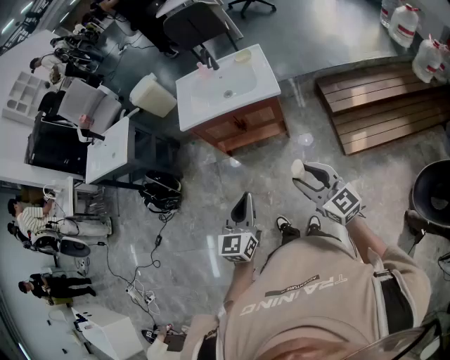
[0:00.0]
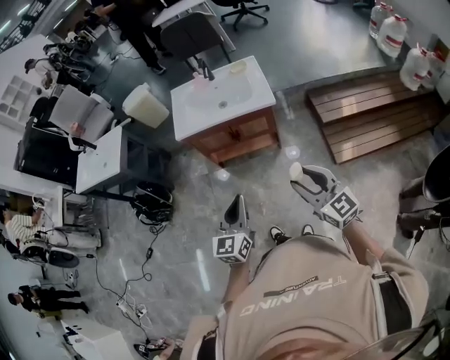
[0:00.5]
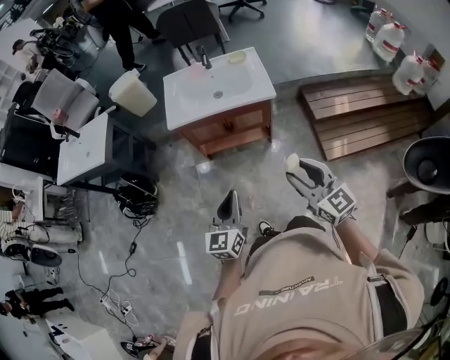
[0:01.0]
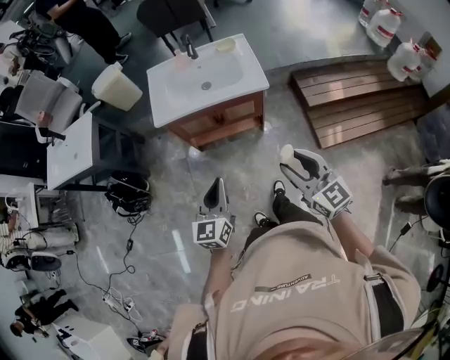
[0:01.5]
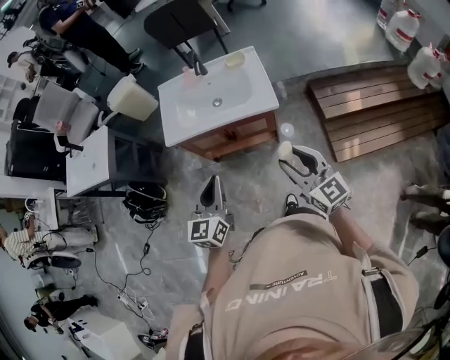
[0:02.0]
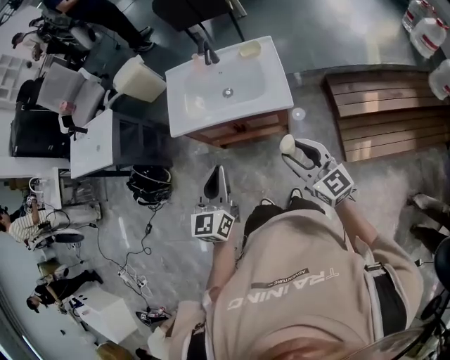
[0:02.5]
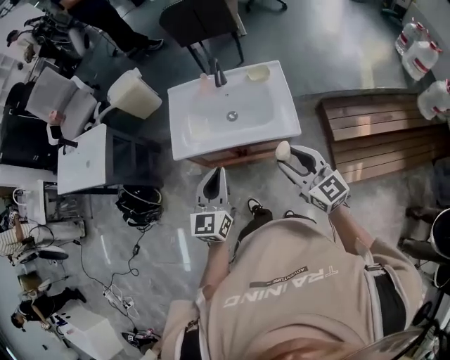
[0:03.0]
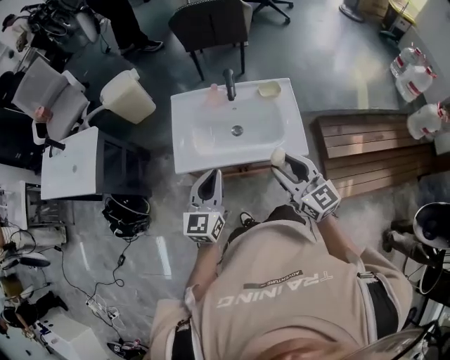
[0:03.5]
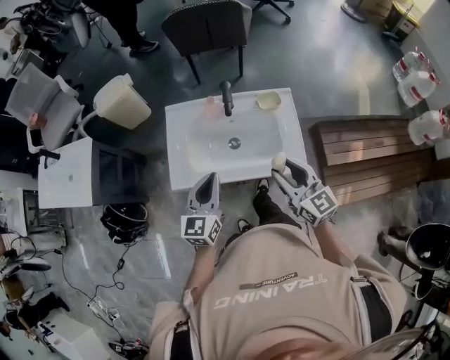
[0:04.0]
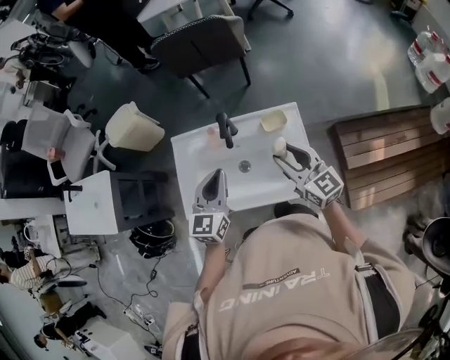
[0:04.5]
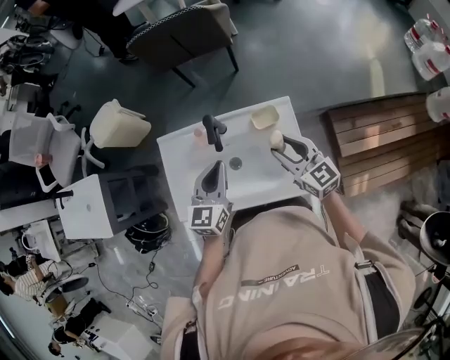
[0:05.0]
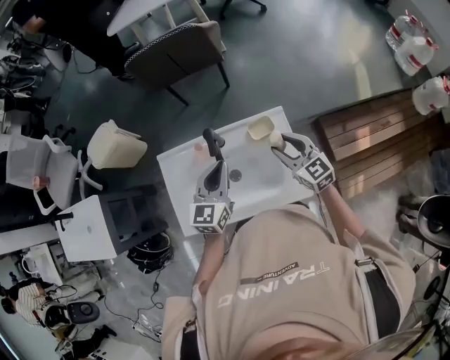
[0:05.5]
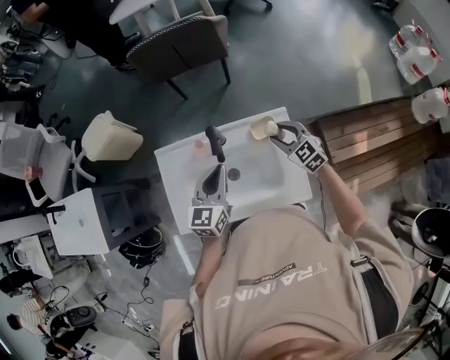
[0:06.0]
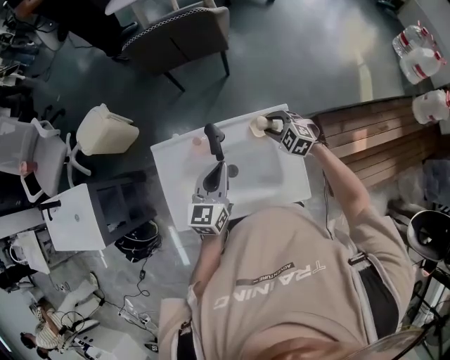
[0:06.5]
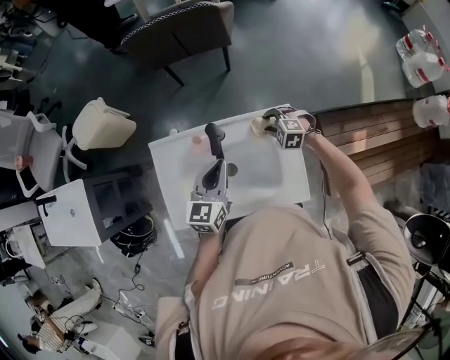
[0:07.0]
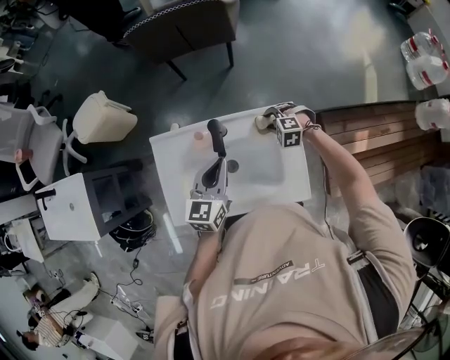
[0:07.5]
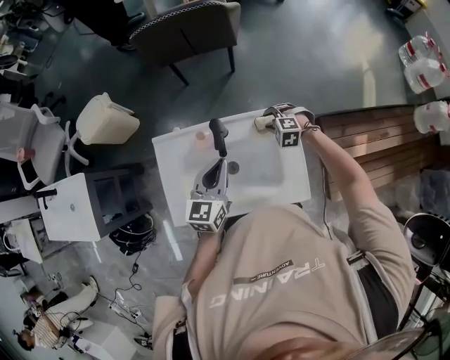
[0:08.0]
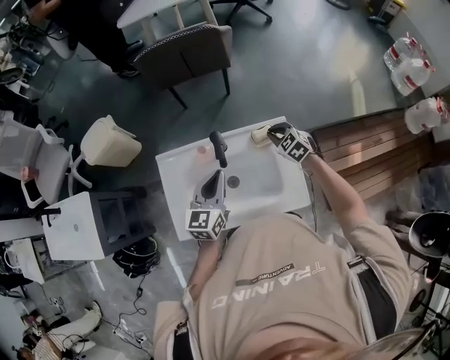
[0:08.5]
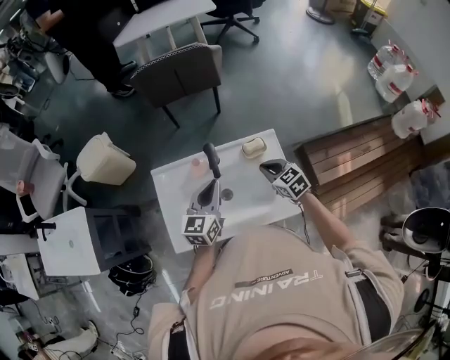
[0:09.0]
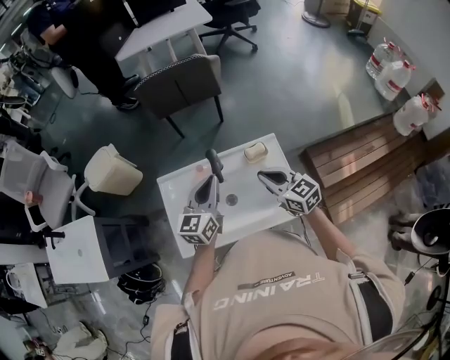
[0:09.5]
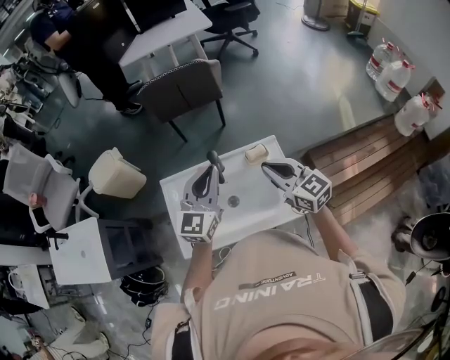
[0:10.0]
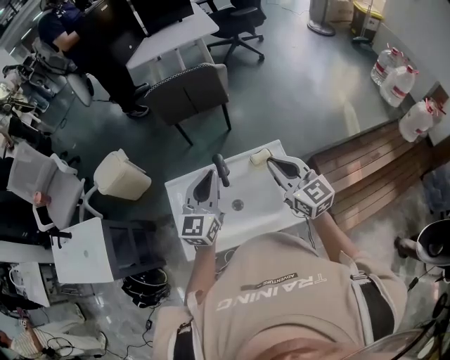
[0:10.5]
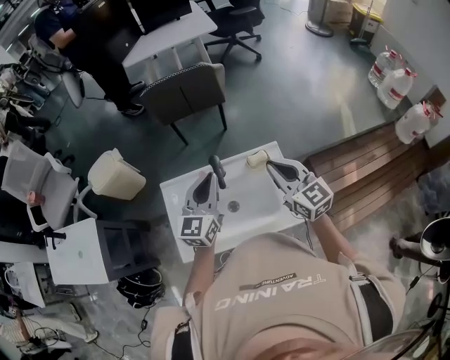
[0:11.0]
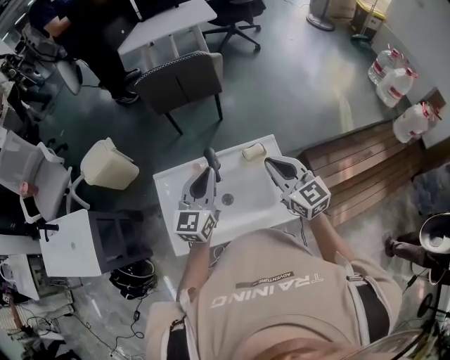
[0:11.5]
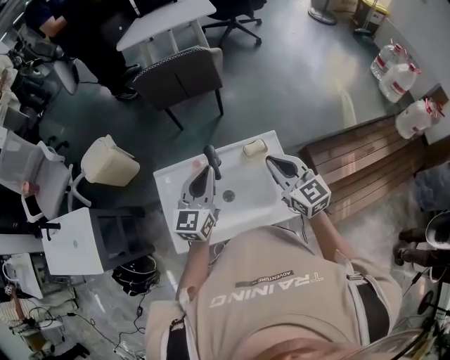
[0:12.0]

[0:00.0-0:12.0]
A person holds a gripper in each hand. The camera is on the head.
0:00.0 to 0:02.0: The two grippers go about 20 cm forward.
0:02.0 to 0:04.0: The grippers both shift forward by some 30 cm.
0:04.0 to 0:06.0: The right gripper heads forward and downward, covering about 30 cm, and rotates about 30 degrees, while the left gripper is displaced forward and to the right by some 25 cm.
0:06.0 to 0:08.0: The right gripper goes some 15 cm downward and forward, and points its fingers approximately 30 degrees further downward.
0:08.0 to 0:10.0: The left gripper travels upward by some 15 cm, and rotates roughly 20 degrees. Meanwhile the right gripper moves upward and backward, about 35 cm, angles its fingers upward, by roughly 50 degrees, and closes its fingers.
0:10.0 to 0:12.0: The left gripper changes place by some 5 cm.

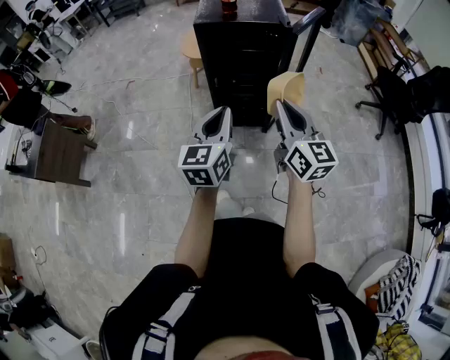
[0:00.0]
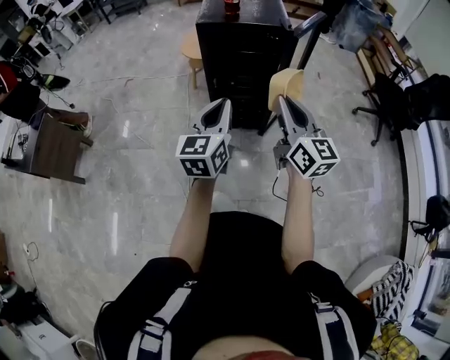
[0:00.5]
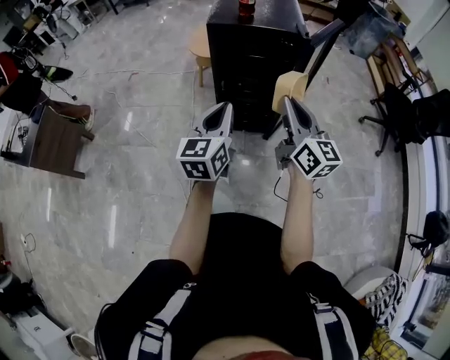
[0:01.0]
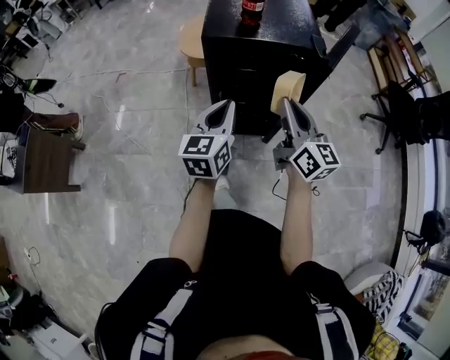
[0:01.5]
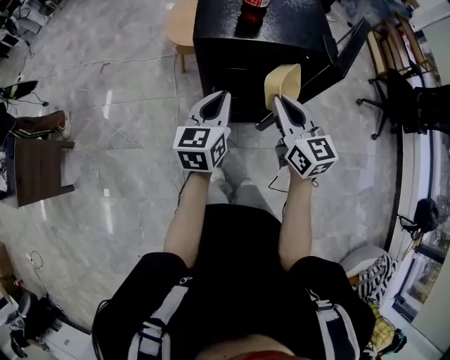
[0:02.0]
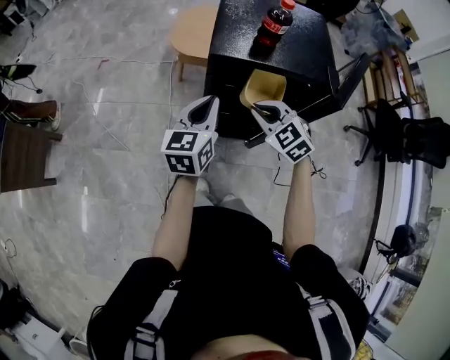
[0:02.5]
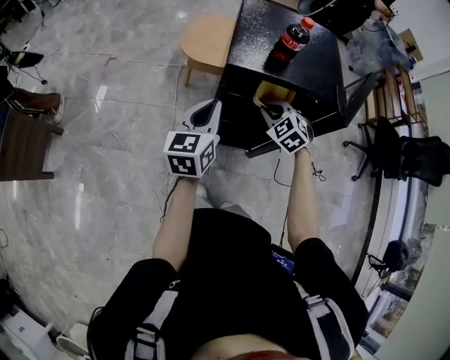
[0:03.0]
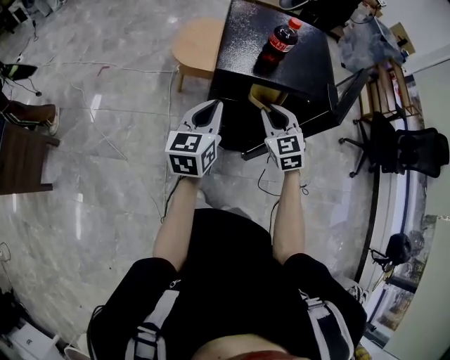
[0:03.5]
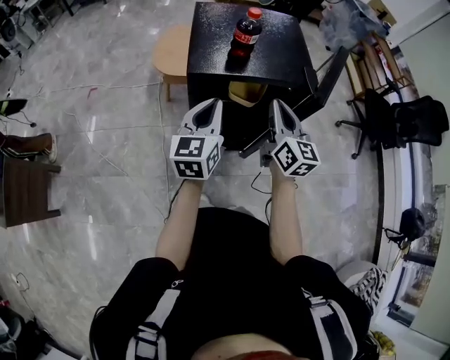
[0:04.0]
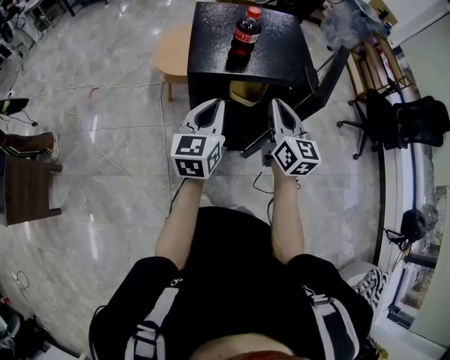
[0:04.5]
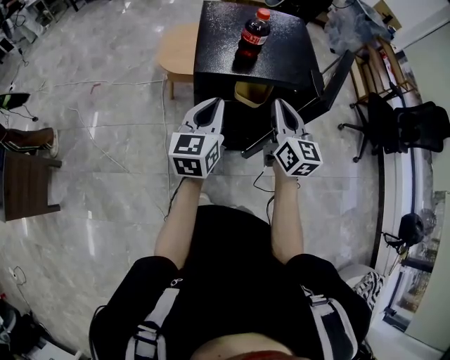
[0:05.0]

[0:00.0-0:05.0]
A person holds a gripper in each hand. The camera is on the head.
0:00.0 to 0:02.5: The left gripper is displaced forward by roughly 35 cm, while the right gripper goes roughly 40 cm forward and downward, and points its fingers some 40 degrees further downward.
0:02.5 to 0:05.0: The right gripper heads upward and to the right, covering some 15 cm, and points its fingers approximately 30 degrees further upward. Meanwhile the left gripper moves some 5 cm.

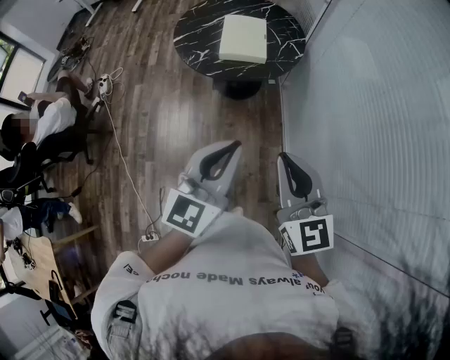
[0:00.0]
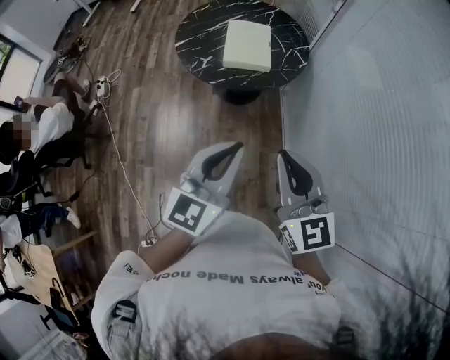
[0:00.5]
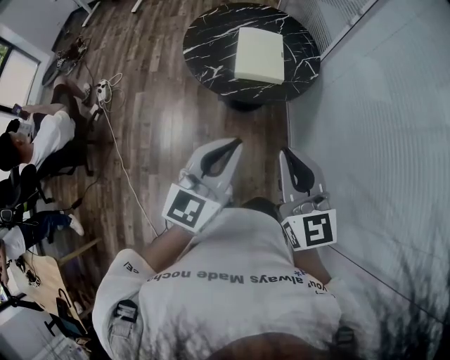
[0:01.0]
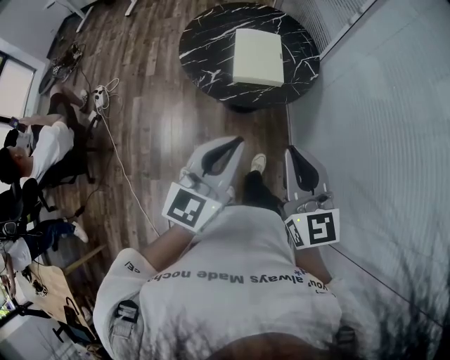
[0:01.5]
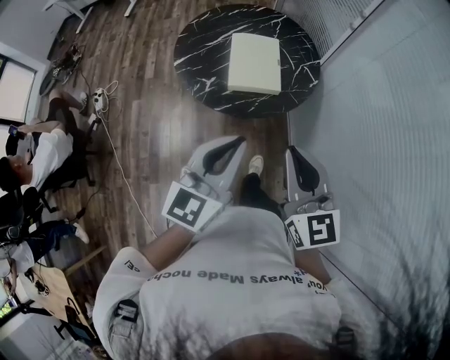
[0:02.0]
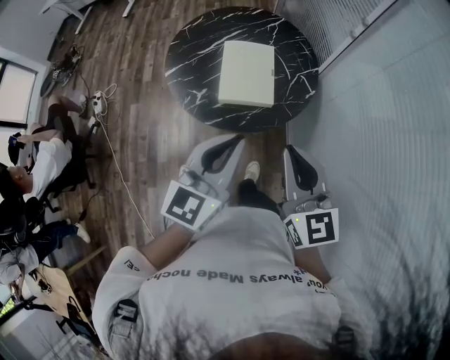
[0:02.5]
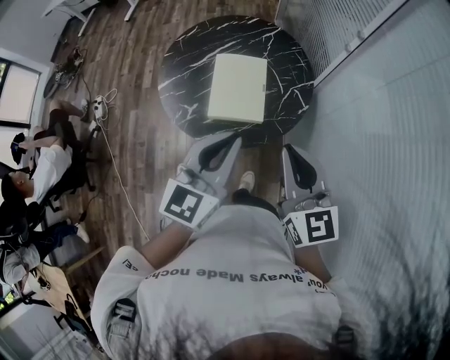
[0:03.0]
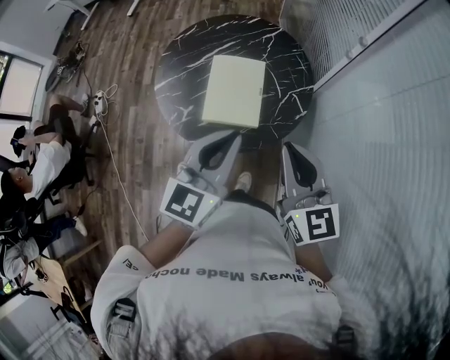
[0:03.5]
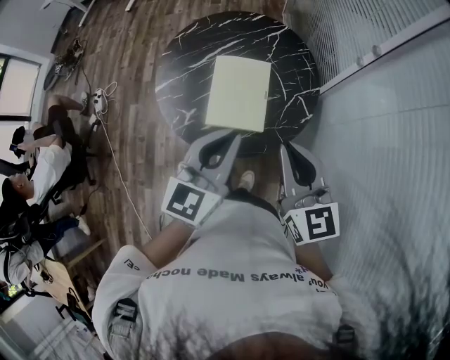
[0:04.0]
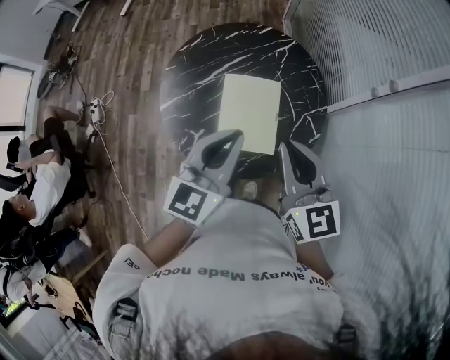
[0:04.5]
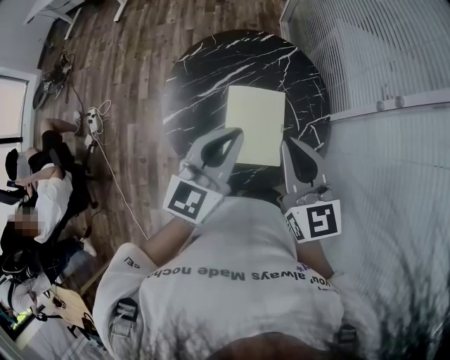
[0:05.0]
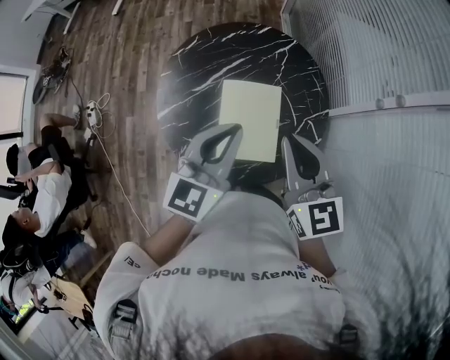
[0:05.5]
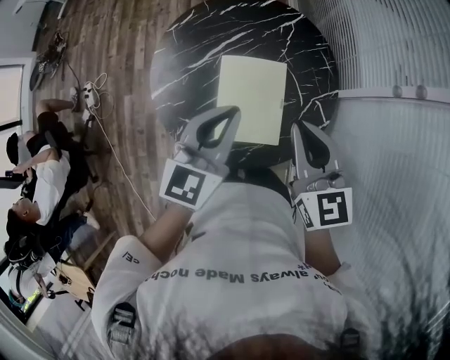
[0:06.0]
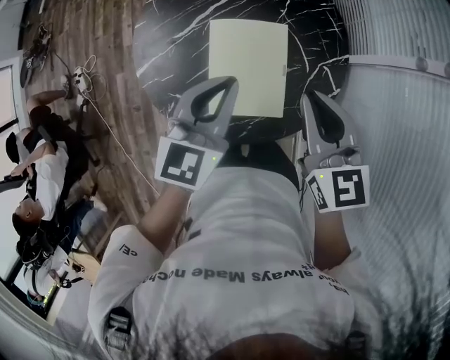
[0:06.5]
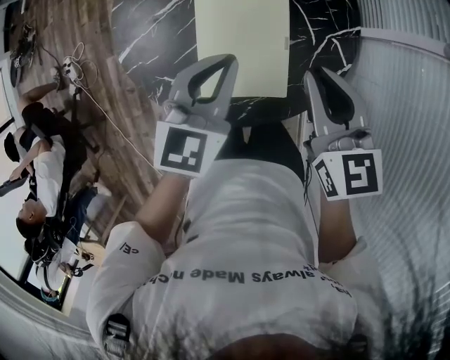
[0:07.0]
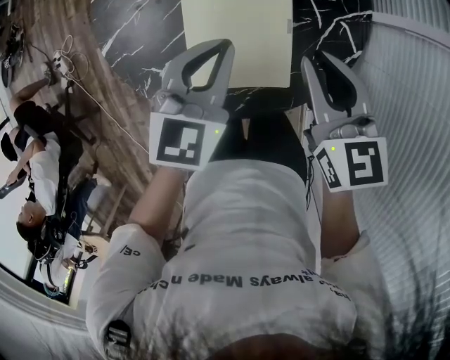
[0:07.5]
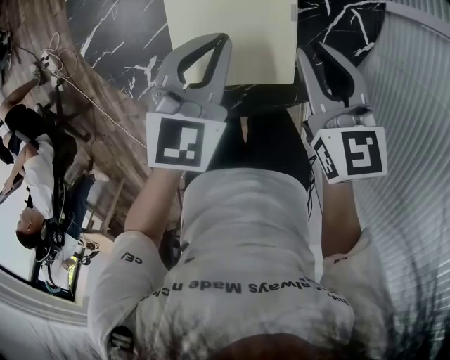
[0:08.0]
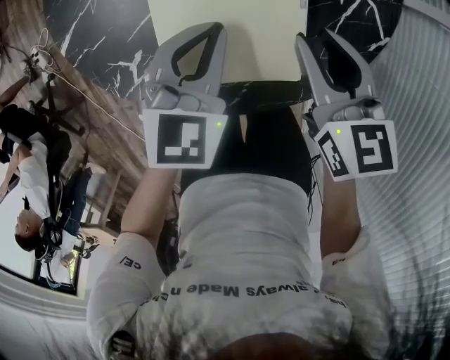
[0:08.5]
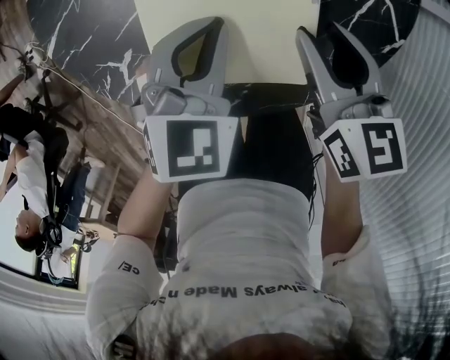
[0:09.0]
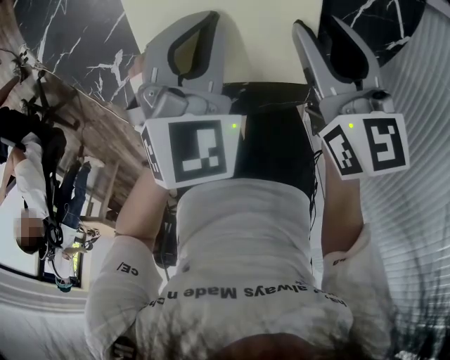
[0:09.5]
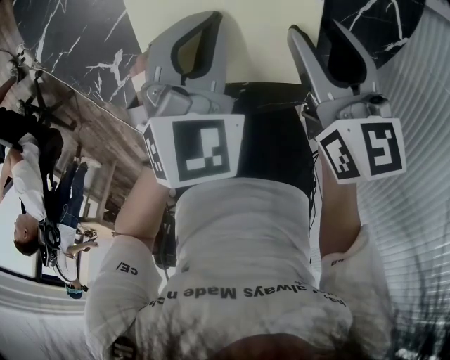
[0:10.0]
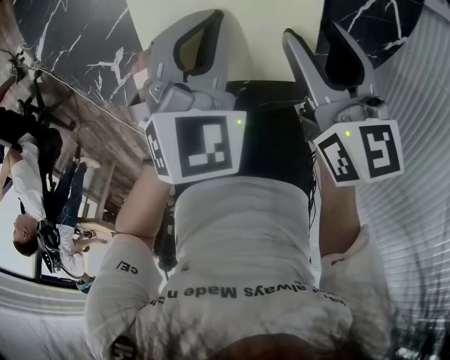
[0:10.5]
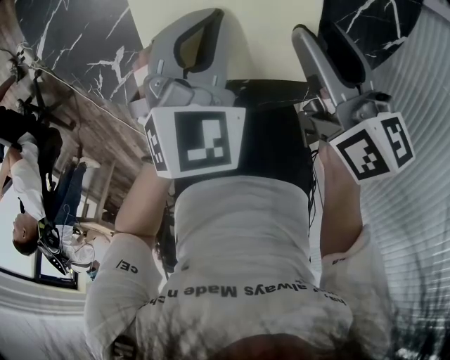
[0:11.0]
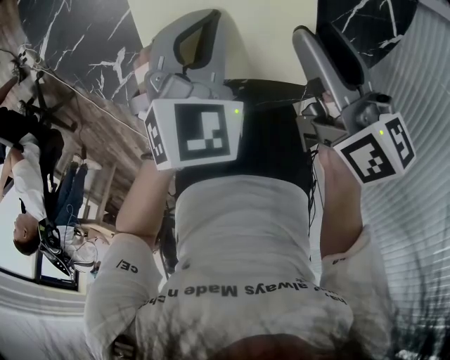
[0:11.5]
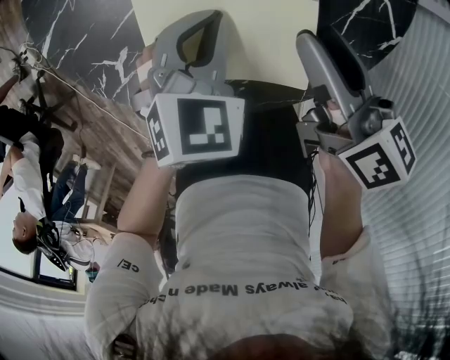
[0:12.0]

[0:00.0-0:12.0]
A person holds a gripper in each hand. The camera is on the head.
0:00.0 to 0:02.0: The left gripper shifts approximately 25 cm forward and to the left. The right gripper shifts some 25 cm forward.
0:02.0 to 0:04.0: The grippers both shift forward by about 30 cm.
0:04.0 to 0:06.0: The right gripper moves forward, some 20 cm; the left gripper moves forward and to the left, some 20 cm.
0:06.0 to 0:08.0: The grippers both shift downward by some 30 cm. The left gripper turns by approximately 20 degrees.
0:08.0 to 0:10.0: The two grippers go approximately 10 cm downward. The right gripper opens.
0:10.0 to 0:12.0: The right gripper rotates roughly 30 degrees.
